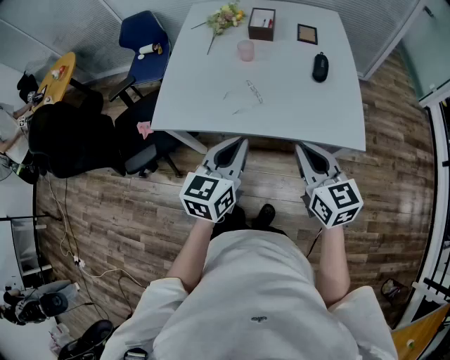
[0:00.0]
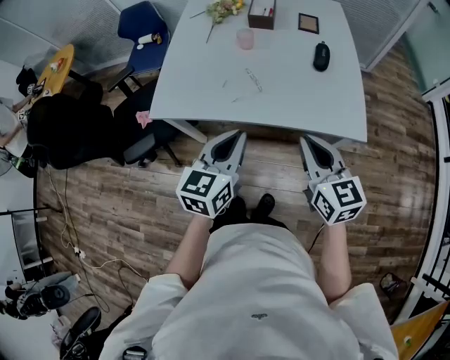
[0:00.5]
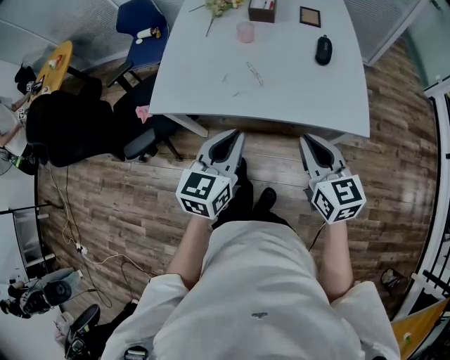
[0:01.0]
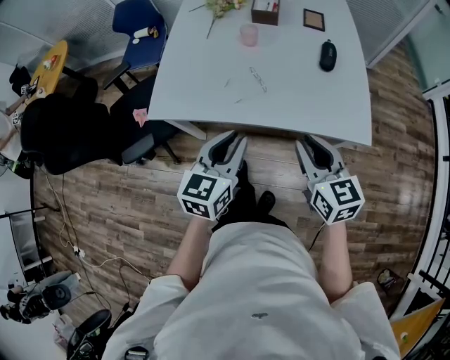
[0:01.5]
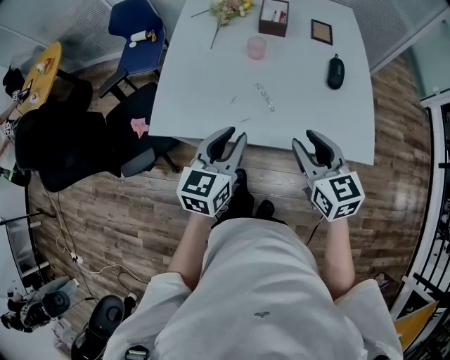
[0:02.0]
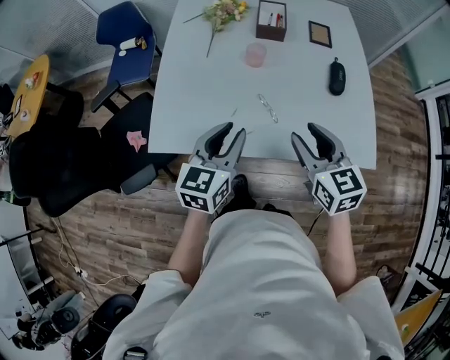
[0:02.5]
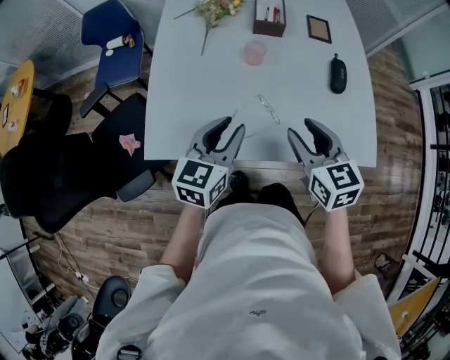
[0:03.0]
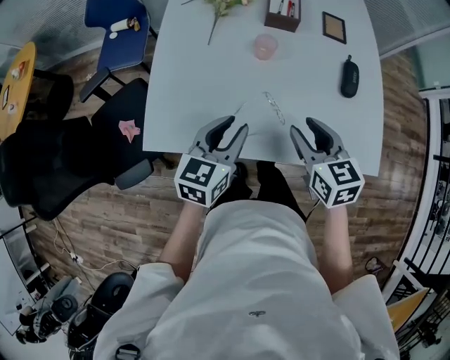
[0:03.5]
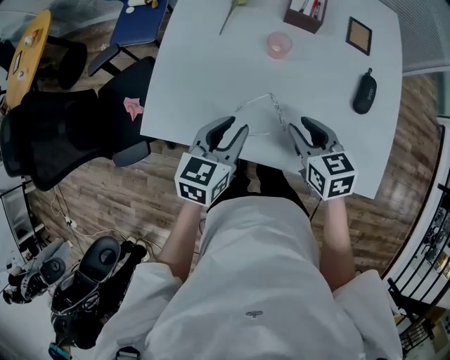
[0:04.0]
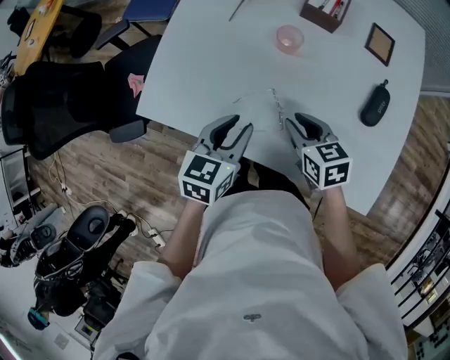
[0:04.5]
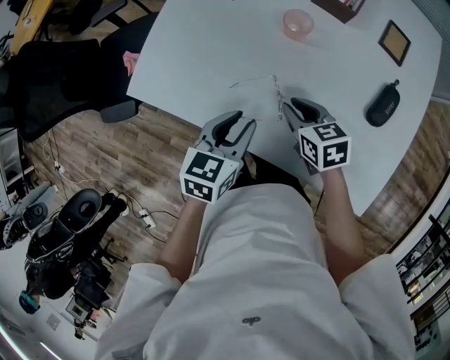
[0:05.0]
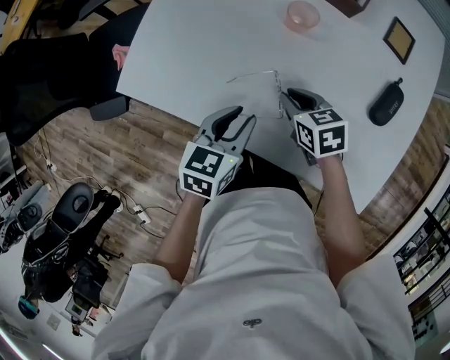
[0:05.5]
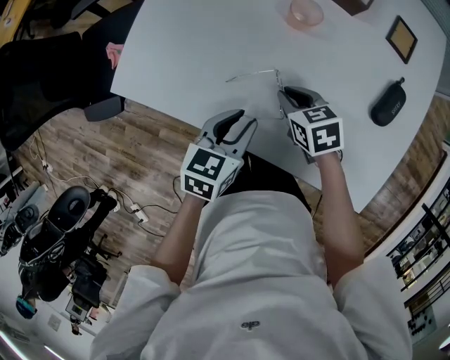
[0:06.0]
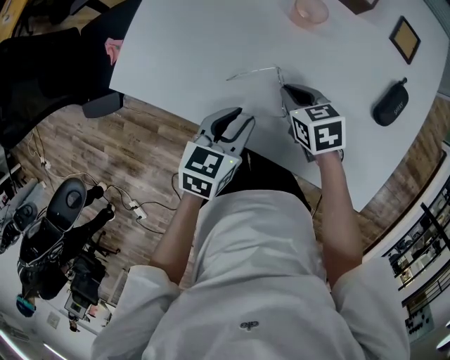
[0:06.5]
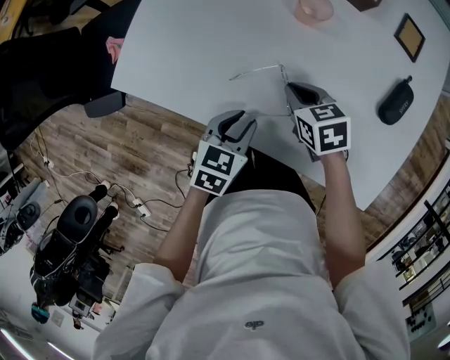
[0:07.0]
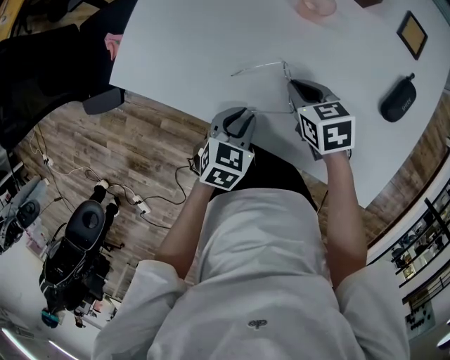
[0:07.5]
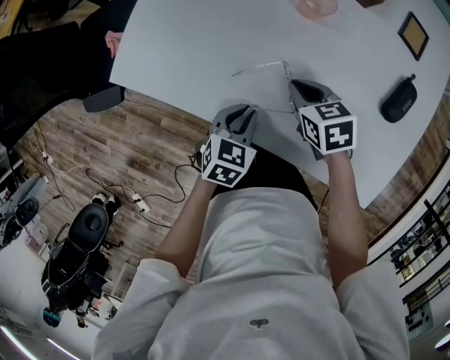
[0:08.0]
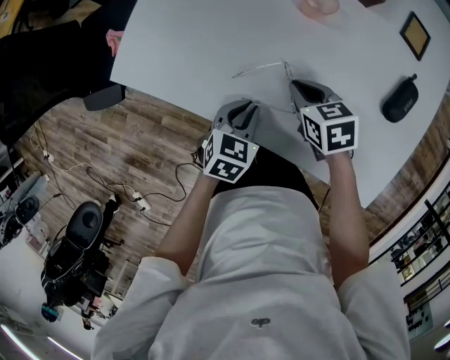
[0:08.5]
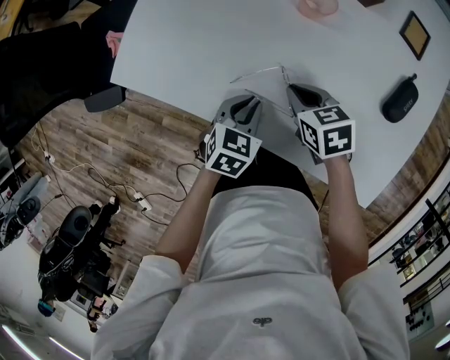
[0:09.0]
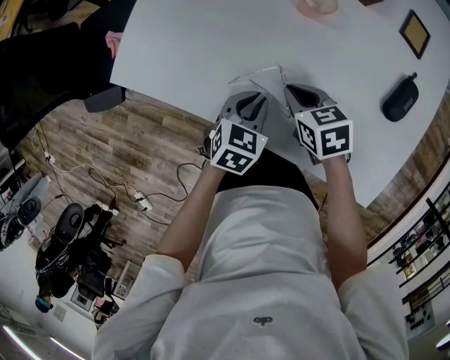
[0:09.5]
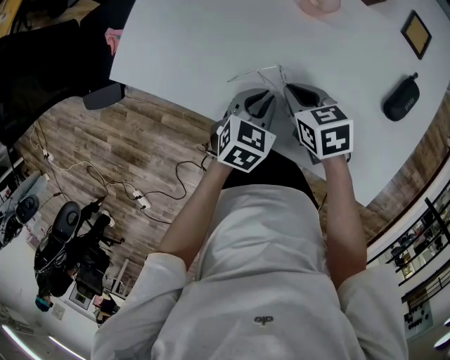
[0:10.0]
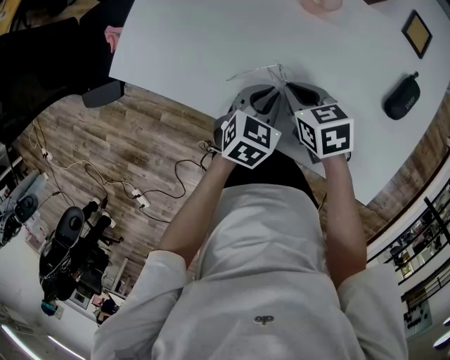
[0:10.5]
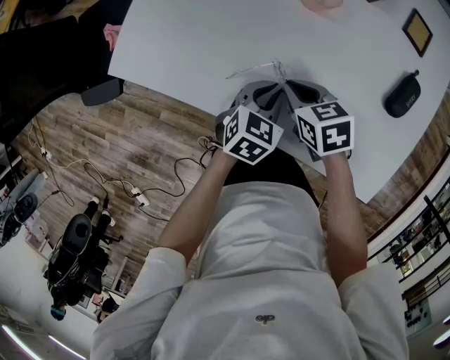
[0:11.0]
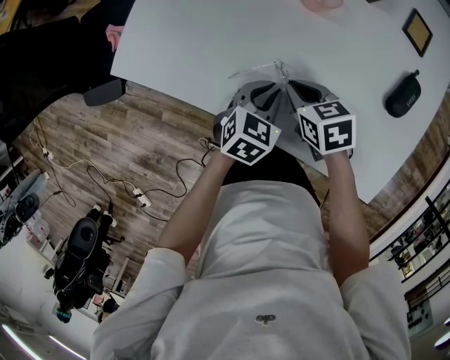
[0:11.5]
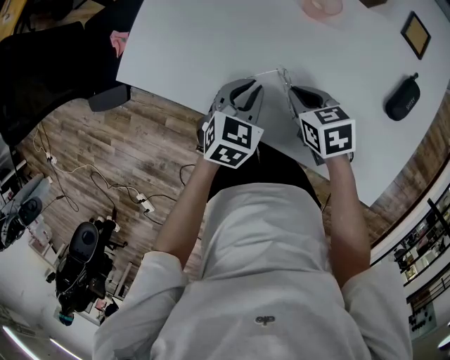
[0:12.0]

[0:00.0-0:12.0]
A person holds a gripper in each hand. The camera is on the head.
0:00.0 to 0:02.0: The right gripper goes roughly 10 cm forward, and opens; the left gripper is displaced forward and to the left by some 15 cm, and opens up.
0:02.0 to 0:04.0: The two grippers go roughly 20 cm forward and downward.
0:04.0 to 0:06.0: The right gripper goes approximately 15 cm downward, changes its angle by roughly 30 degrees, and closes up, while the left gripper heads downward and to the right, covering some 10 cm.
0:06.0 to 0:08.0: The left gripper travels downward by about 5 cm.
0:08.0 to 0:10.0: The left gripper shifts by roughly 5 cm.
0:10.0 to 0:12.0: The left gripper changes place by some 5 cm.

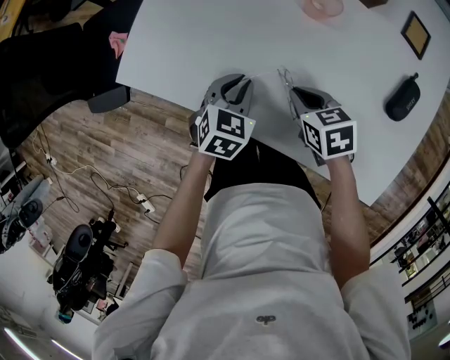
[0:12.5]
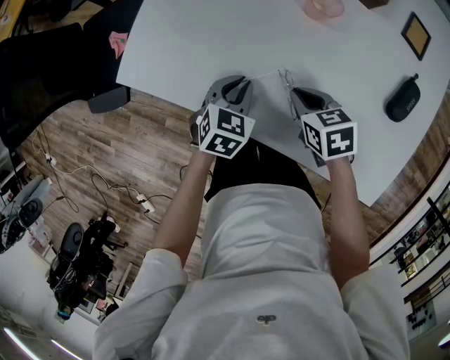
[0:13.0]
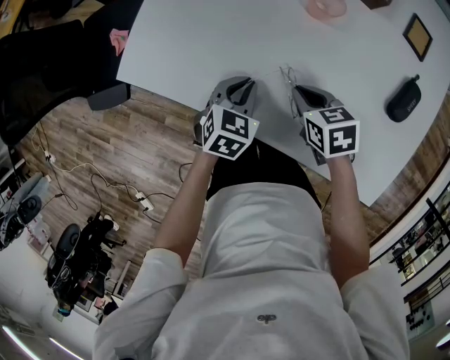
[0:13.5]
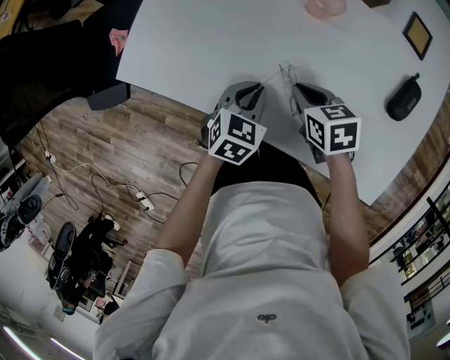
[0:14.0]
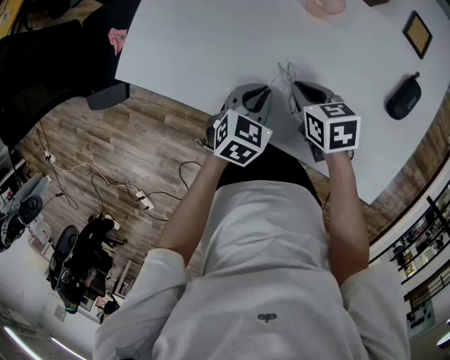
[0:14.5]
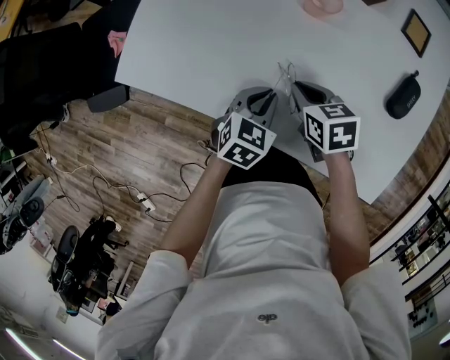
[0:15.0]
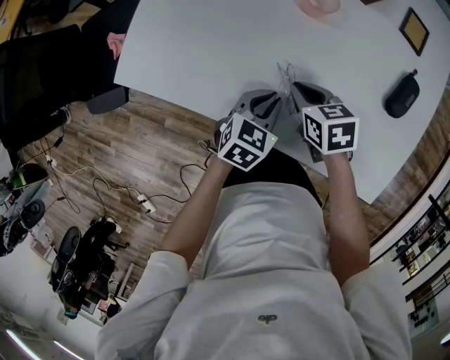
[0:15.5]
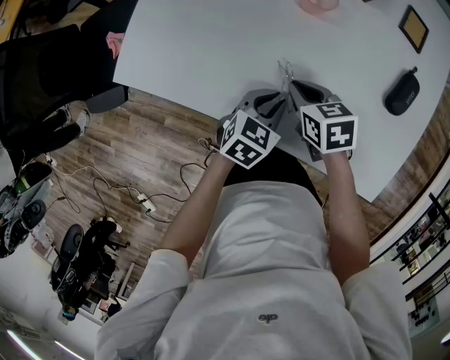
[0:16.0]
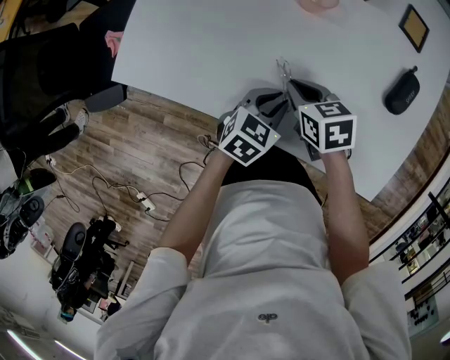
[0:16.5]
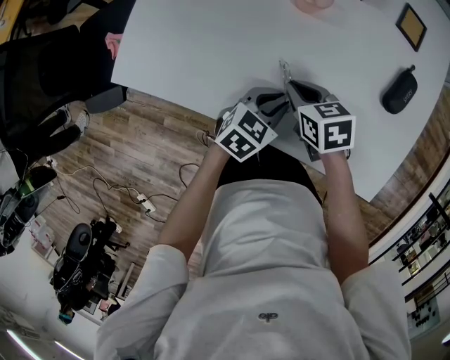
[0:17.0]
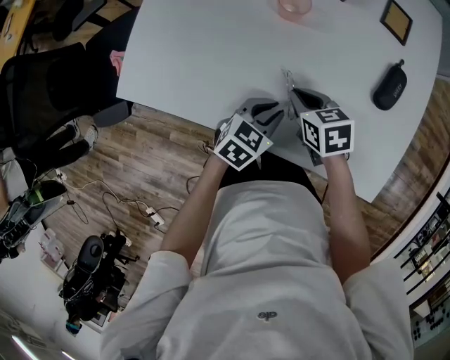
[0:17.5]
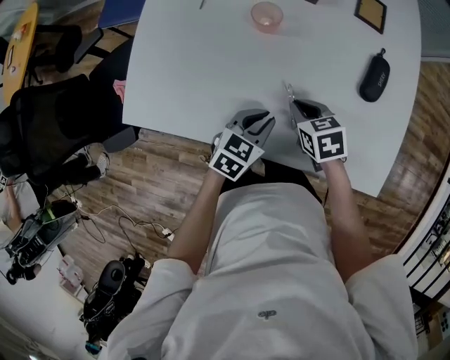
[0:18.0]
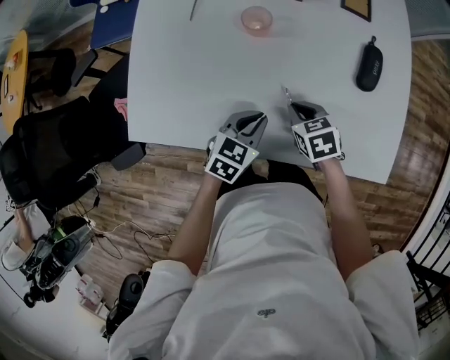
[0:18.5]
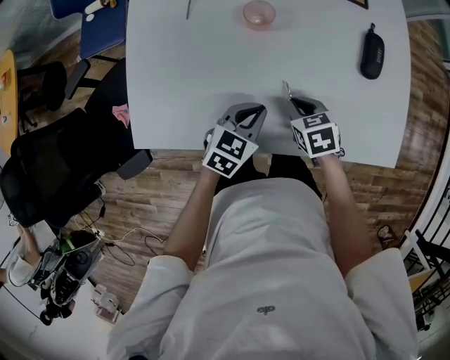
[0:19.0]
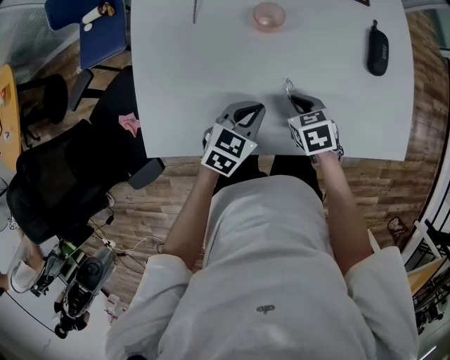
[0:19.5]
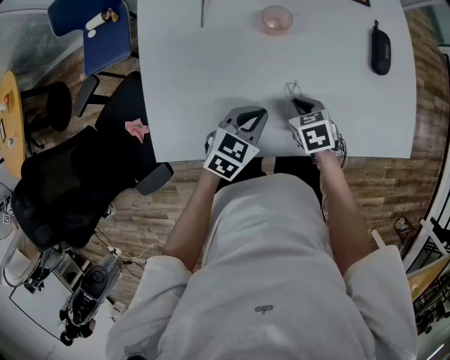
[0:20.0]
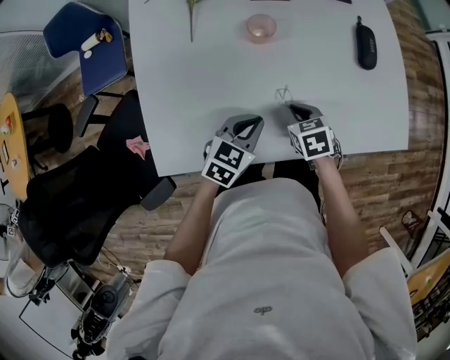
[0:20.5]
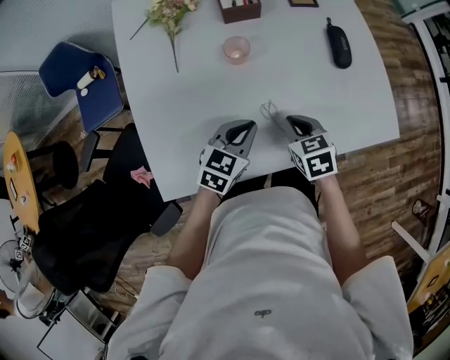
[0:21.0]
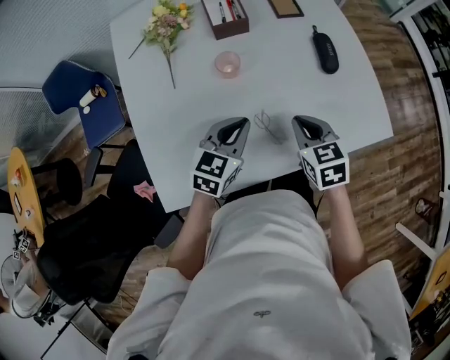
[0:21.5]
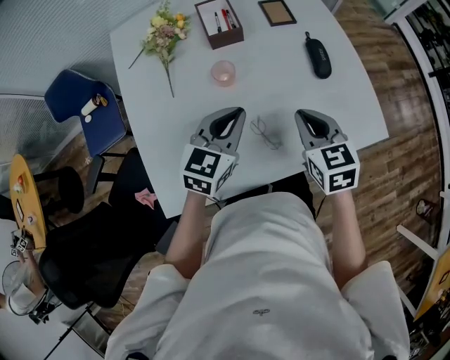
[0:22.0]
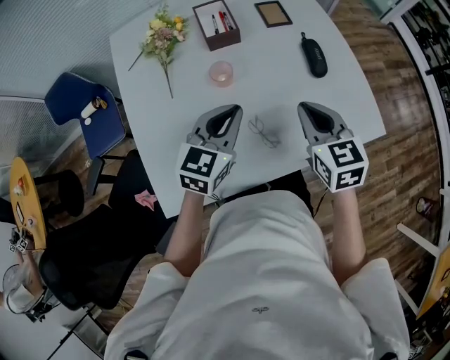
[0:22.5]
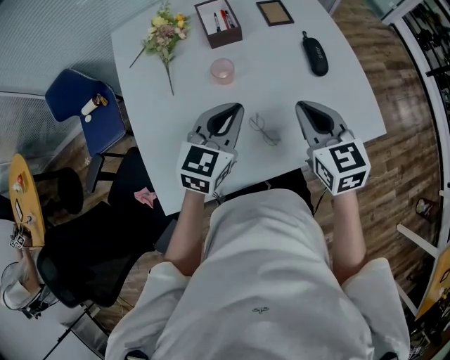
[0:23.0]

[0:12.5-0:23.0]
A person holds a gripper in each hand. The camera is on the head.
0:12.5 to 0:14.5: The left gripper ends up approximately 5 cm from where it was.
0:14.5 to 0:16.5: The left gripper heads to the right, covering about 5 cm.
0:16.5 to 0:19.0: The left gripper shifts approximately 5 cm upward.
0:19.0 to 0:21.0: The left gripper ends up roughly 5 cm from where it was. Meanwhile the right gripper heads upward, covering approximately 5 cm, and rotates some 20 degrees.
0:21.0 to 0:23.0: The grippers both shift upward by approximately 15 cm. The right gripper changes its angle by roughly 30 degrees.

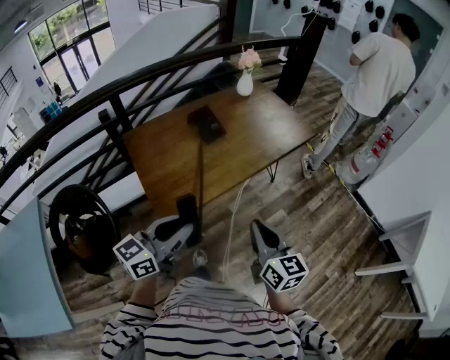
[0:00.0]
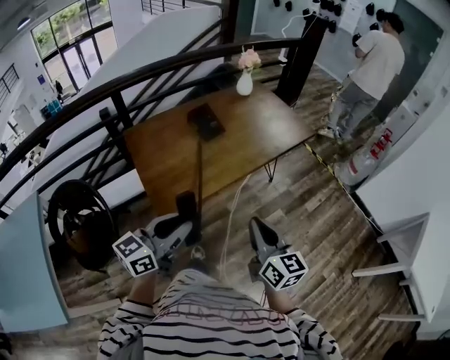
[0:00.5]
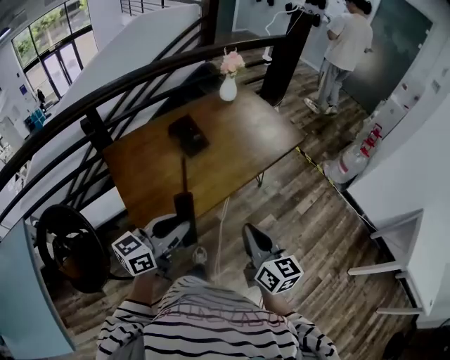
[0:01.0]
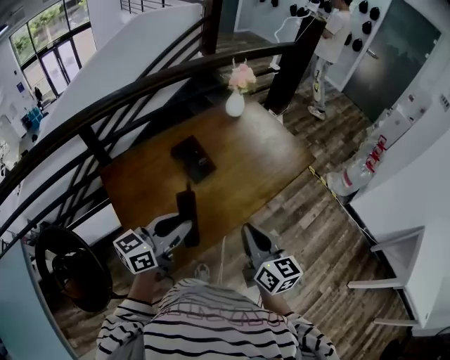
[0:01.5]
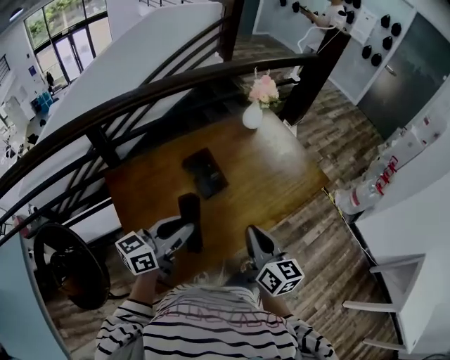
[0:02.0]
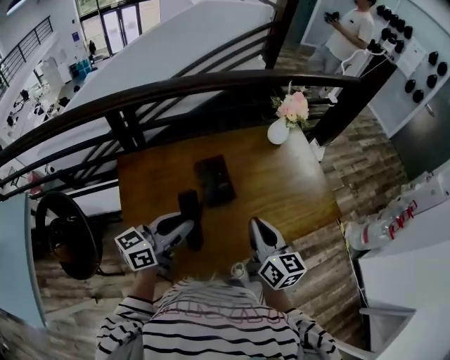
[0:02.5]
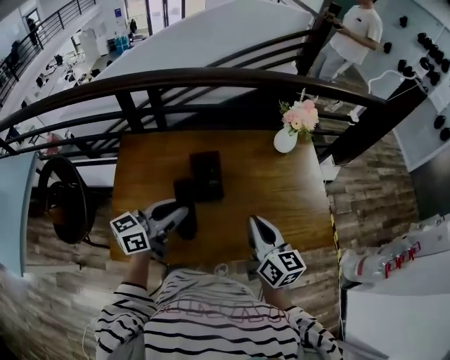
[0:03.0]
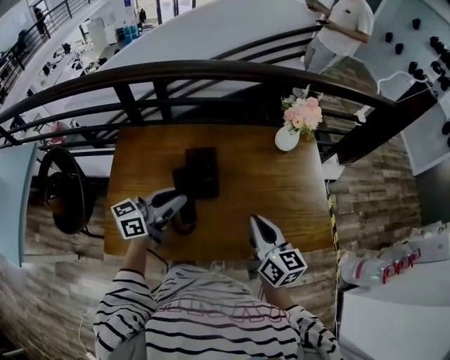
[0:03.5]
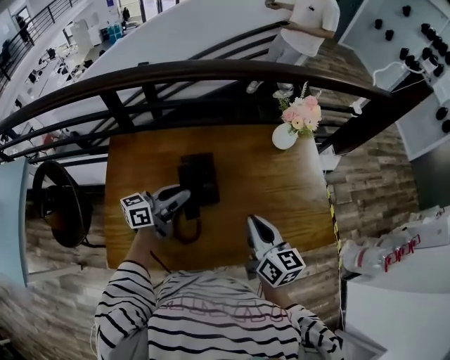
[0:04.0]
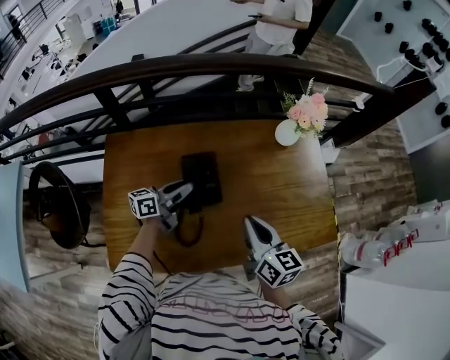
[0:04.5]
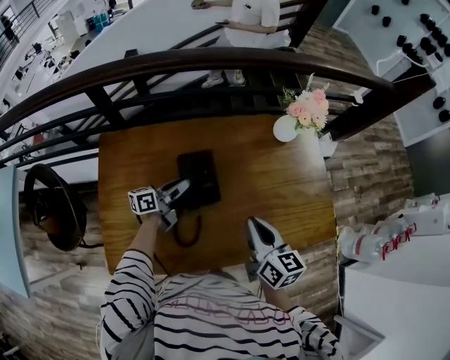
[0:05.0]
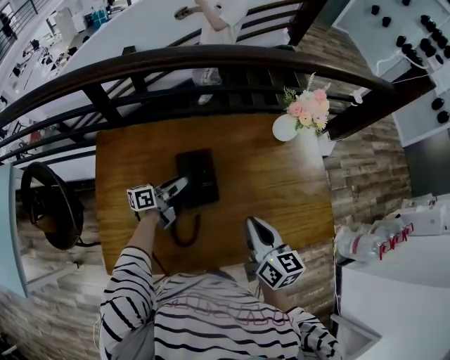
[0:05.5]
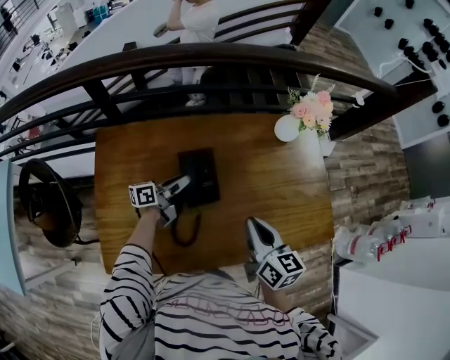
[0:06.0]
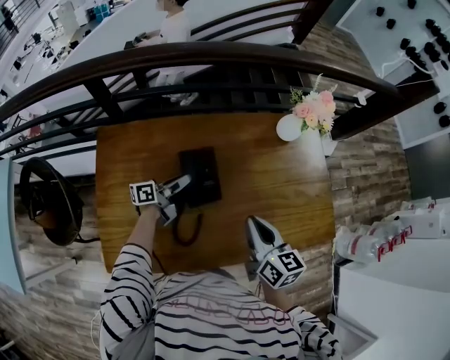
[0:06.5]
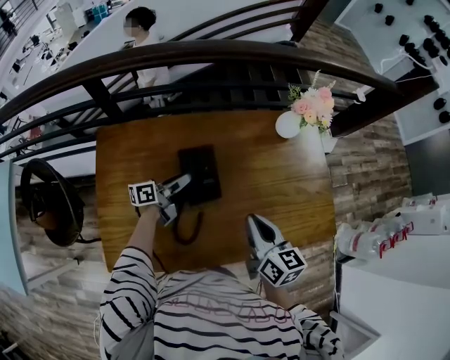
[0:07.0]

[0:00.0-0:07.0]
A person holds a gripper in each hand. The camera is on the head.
0:00.0 to 0:02.0: The grippers both shift forward by roughly 35 cm.
0:02.0 to 0:03.5: The left gripper moves approximately 20 cm, and changes its angle by about 20 degrees; the right gripper shifts by roughly 25 cm, and changes its angle by some 30 degrees.
0:03.5 to 0:05.0: The right gripper travels to the left and forward by about 10 cm. Meanwhile the left gripper moves downward and forward, roughly 25 cm, and rotates approximately 20 degrees.
0:05.0 to 0:07.0: The grippers make only small movements.
